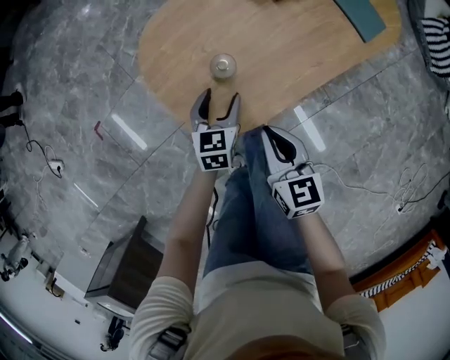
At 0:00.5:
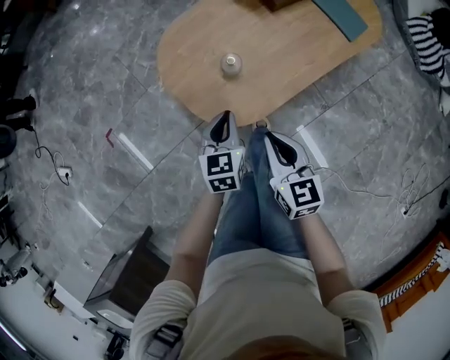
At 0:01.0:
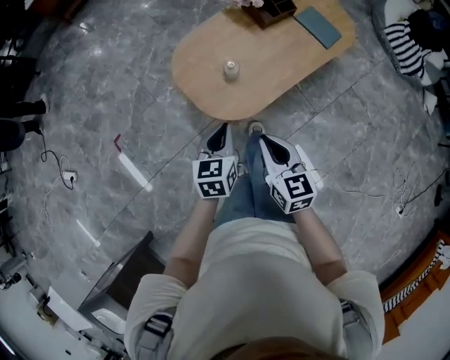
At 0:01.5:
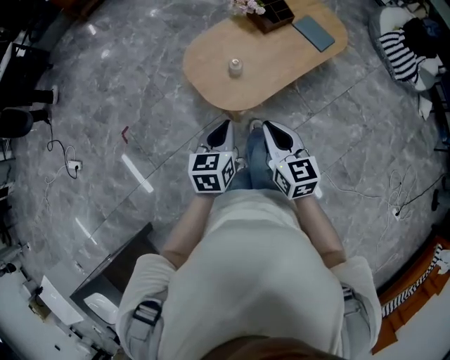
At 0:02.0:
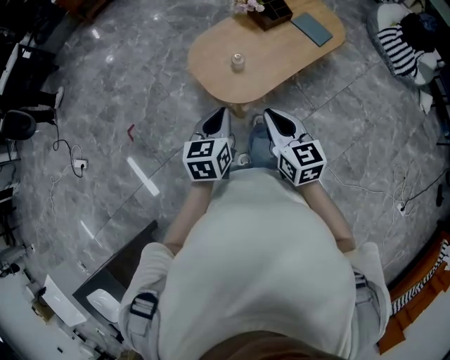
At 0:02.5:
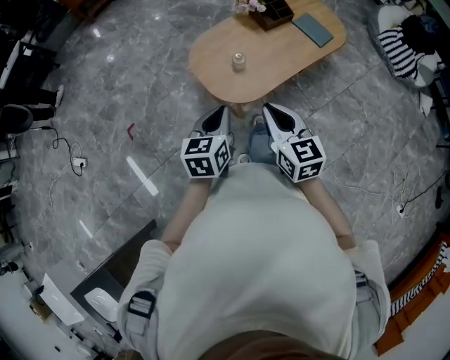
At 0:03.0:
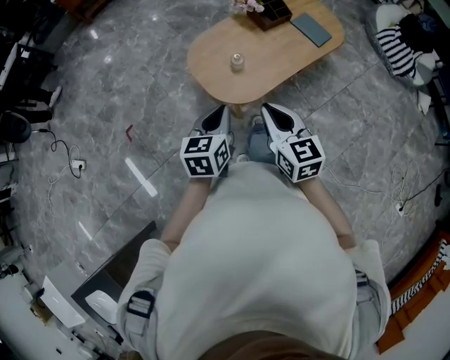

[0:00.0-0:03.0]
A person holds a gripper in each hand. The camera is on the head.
0:00.0 to 0:01.5: Both grippers move upward and backward, roughly 35 cm. The left gripper closes its fingers.
0:01.5 to 0:03.0: The grippers stay close to where they were, moving slightly.

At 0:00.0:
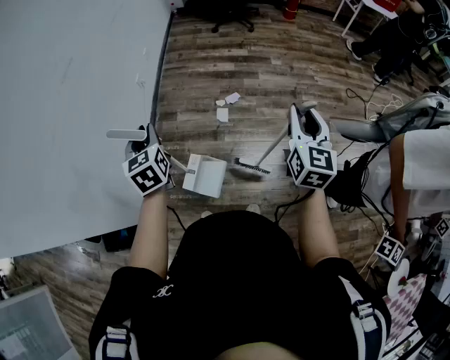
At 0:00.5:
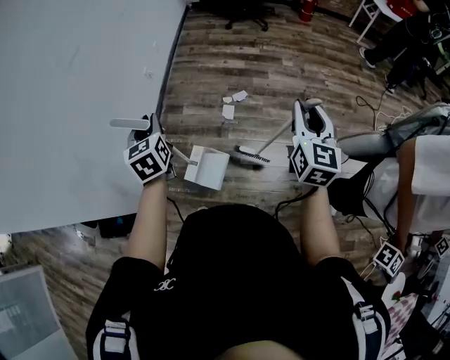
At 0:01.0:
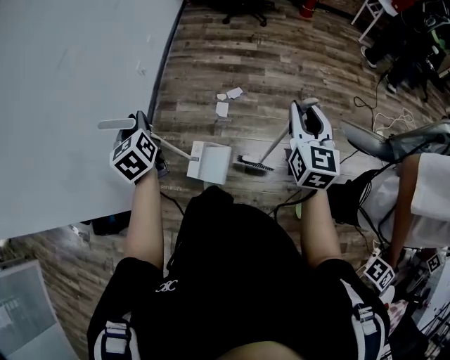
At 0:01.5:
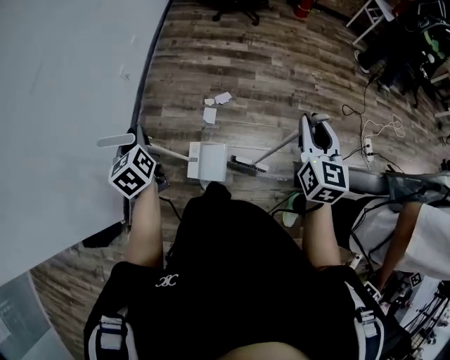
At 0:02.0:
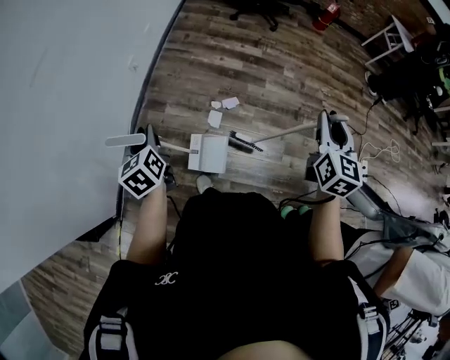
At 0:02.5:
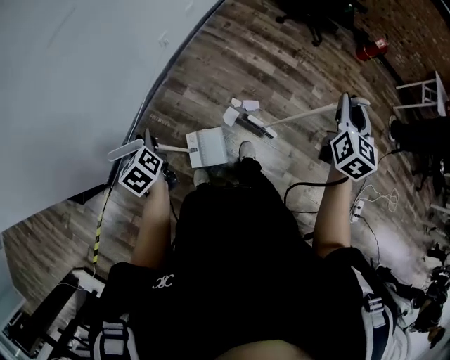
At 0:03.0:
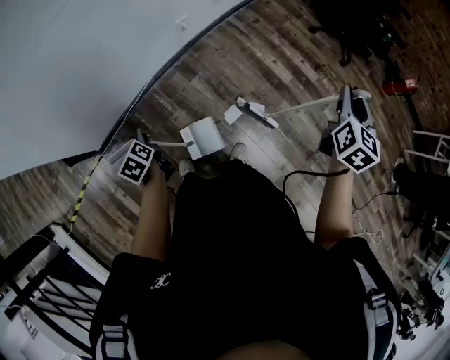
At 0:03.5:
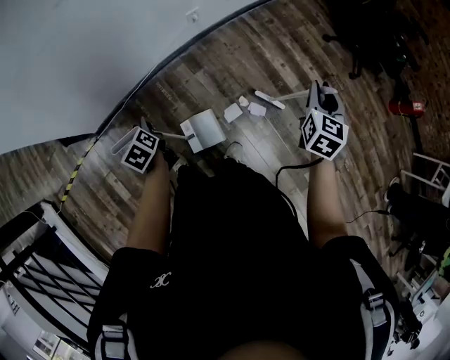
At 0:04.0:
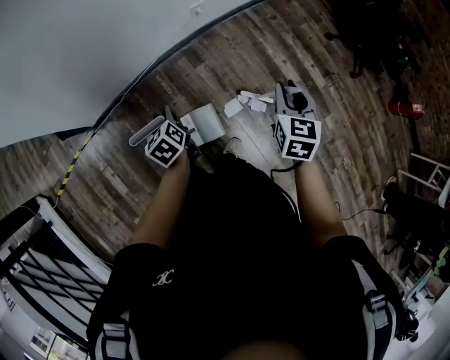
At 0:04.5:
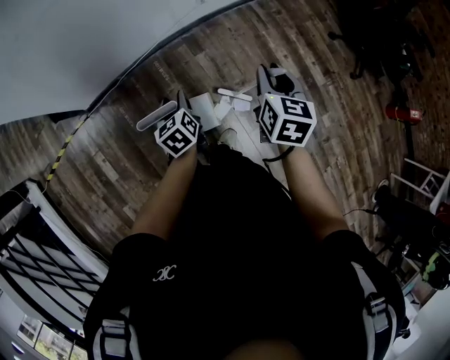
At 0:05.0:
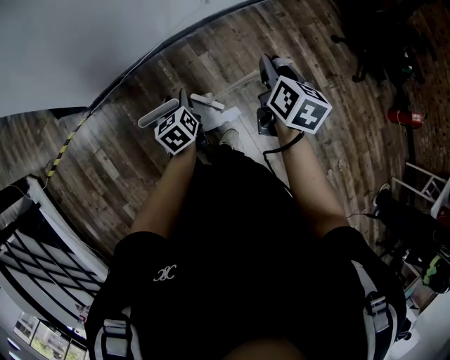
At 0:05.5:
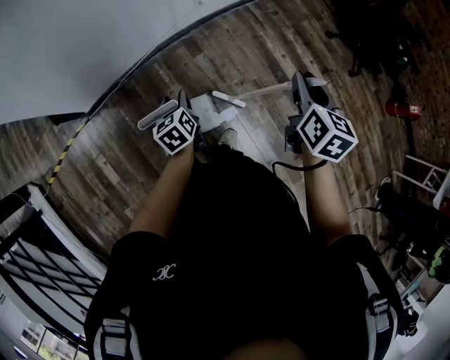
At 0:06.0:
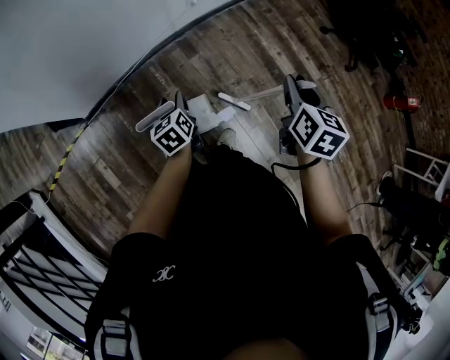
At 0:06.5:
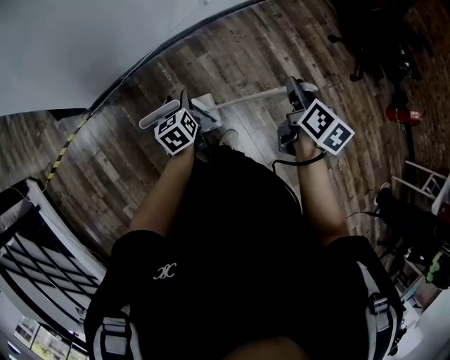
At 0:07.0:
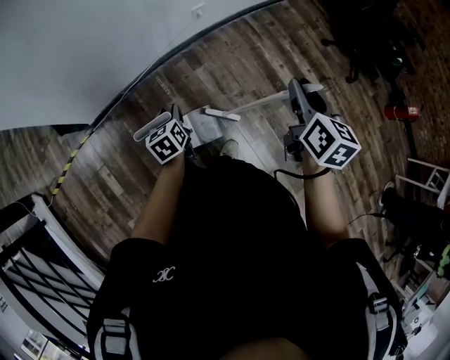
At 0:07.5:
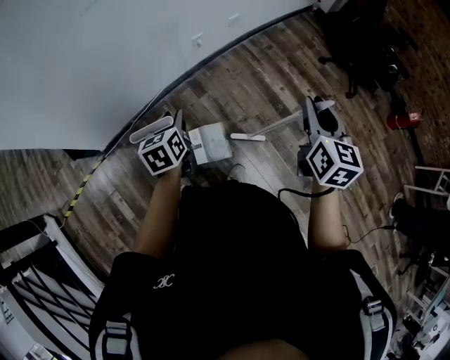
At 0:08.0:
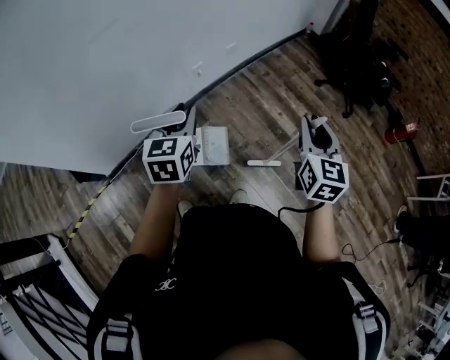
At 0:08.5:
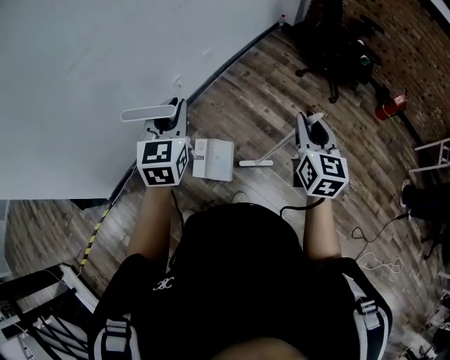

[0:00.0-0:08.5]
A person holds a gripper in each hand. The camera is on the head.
0:00.0 to 0:02.0: The right gripper travels forward and to the right by approximately 30 cm, while the left gripper travels forward and downward by approximately 20 cm, and turns by approximately 30 degrees.
0:02.0 to 0:04.0: The left gripper moves downward, some 15 cm, and swivels about 50 degrees. The right gripper ends up roughly 35 cm from where it was, and changes its angle by some 50 degrees.
0:04.0 to 0:06.5: The left gripper ends up roughly 5 cm from where it was. Meanwhile the right gripper moves some 5 cm to the left and comes back, and changes its angle by about 40 degrees.
0:06.5 to 0:08.5: The left gripper heads upward and to the right, covering roughly 35 cm, changes its angle by some 60 degrees, and closes. Meanwhile the right gripper shifts about 20 cm upward and to the right, and turns by roughly 40 degrees.

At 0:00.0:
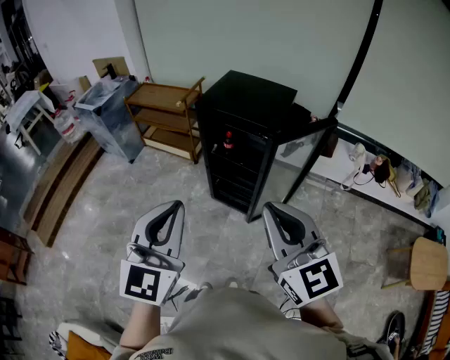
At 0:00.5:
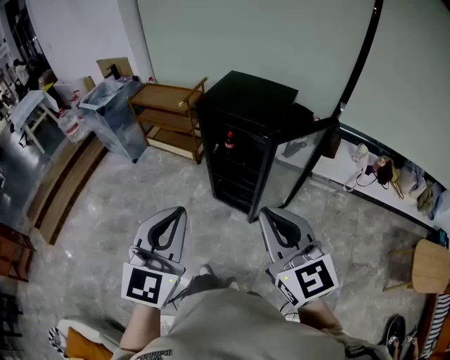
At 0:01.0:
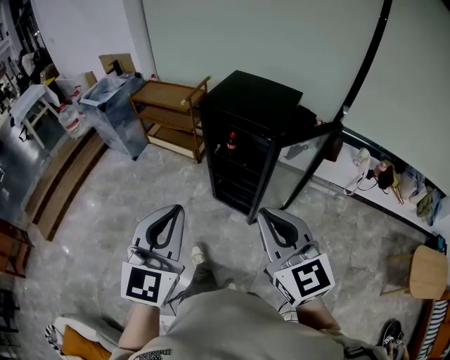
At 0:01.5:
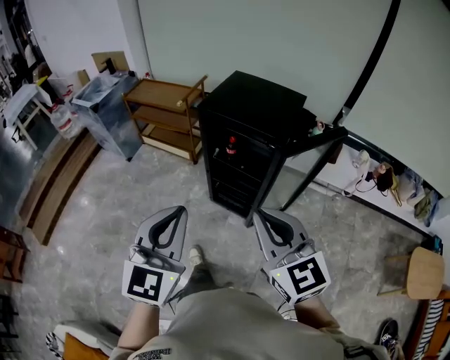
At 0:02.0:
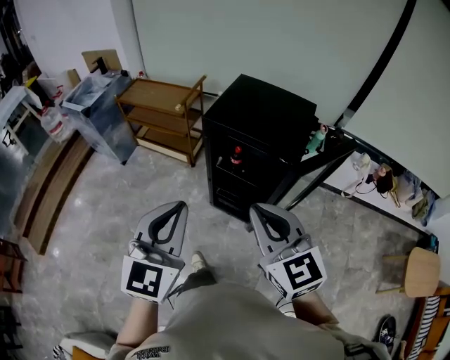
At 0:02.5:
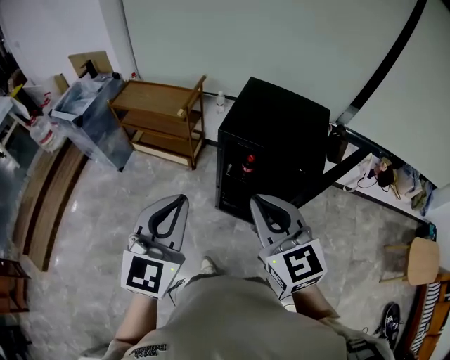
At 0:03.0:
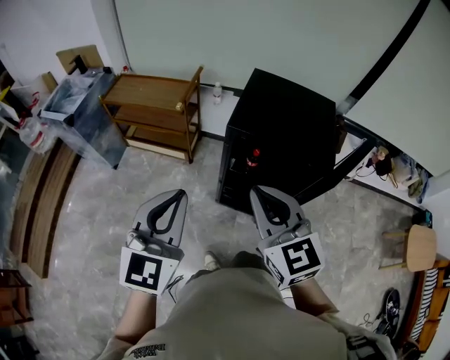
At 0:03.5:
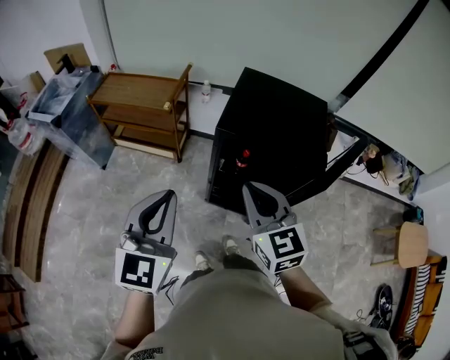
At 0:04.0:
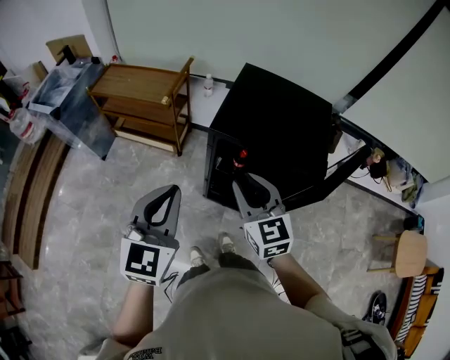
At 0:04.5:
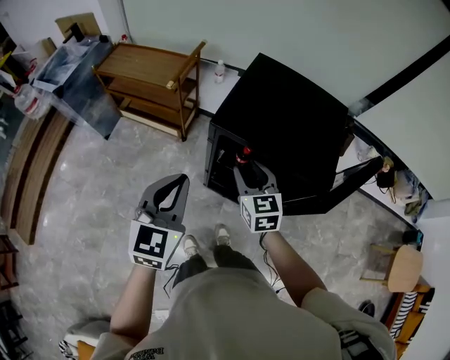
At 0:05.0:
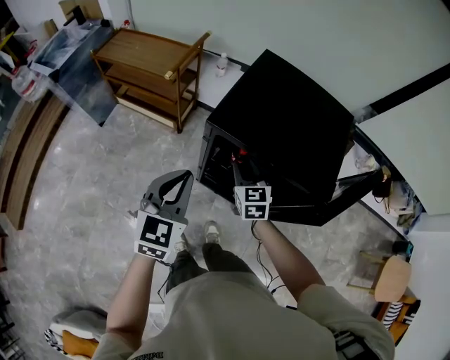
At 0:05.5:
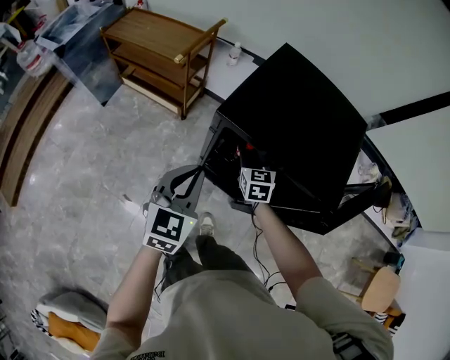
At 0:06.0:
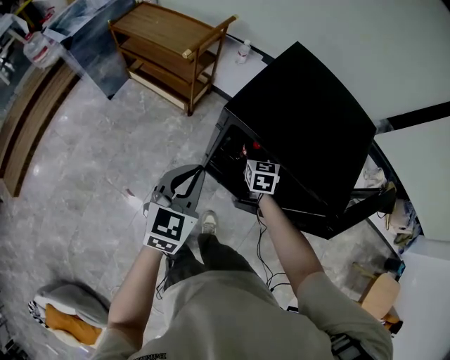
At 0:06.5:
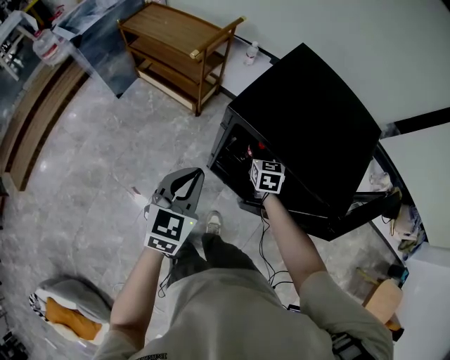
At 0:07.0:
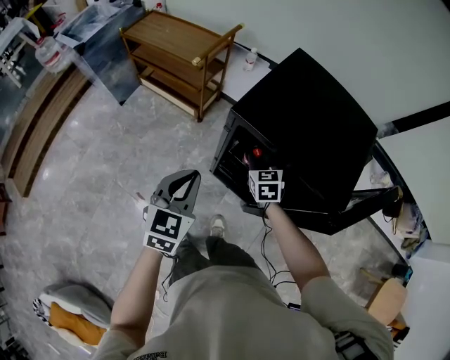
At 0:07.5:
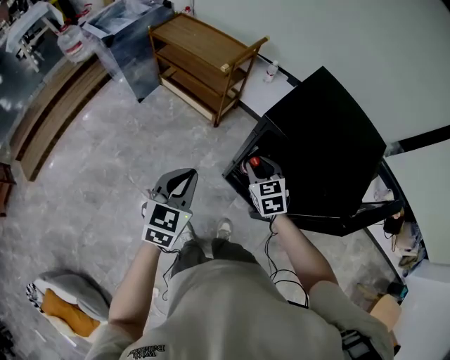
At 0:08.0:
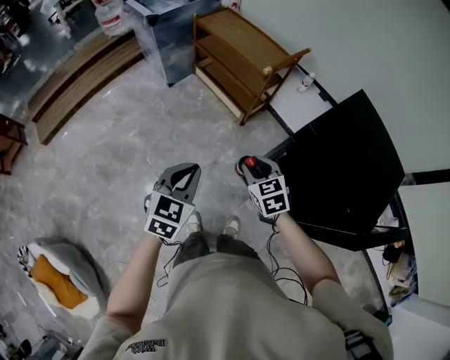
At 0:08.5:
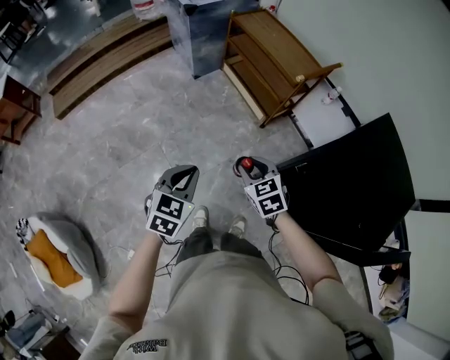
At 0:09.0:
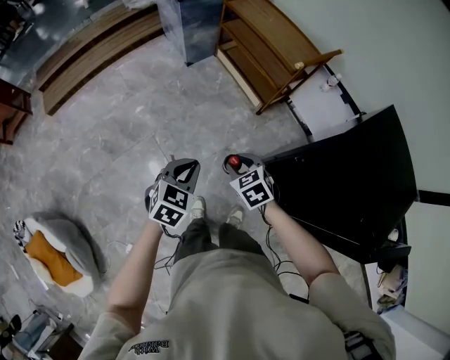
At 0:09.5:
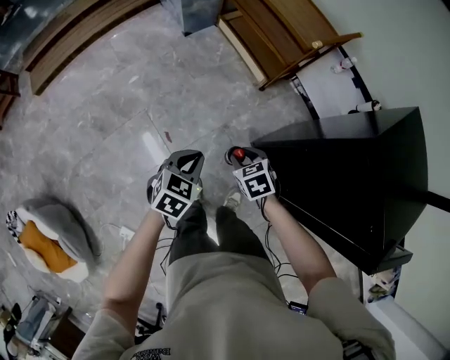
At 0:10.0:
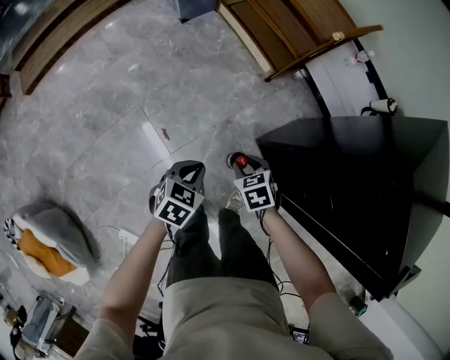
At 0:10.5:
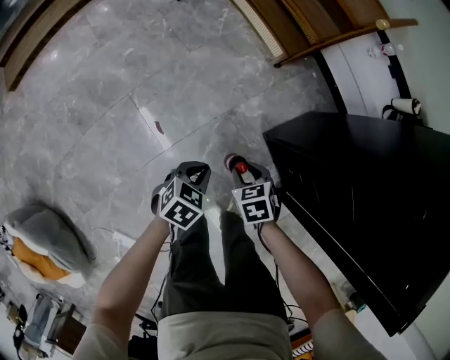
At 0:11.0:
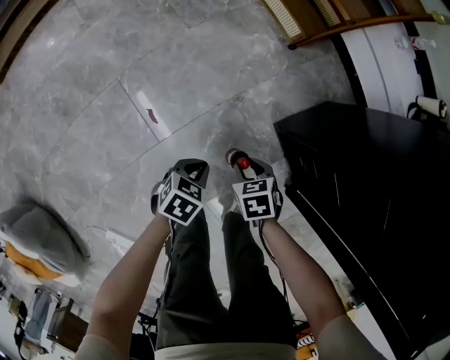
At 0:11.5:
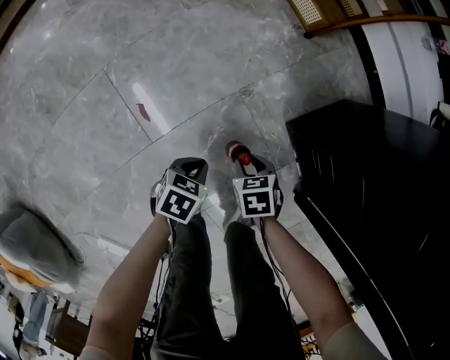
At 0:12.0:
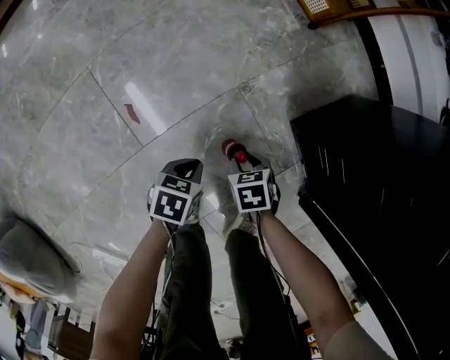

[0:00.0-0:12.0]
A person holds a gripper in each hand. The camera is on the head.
0:00.0 to 0:02.0: The left gripper moves forward, some 15 cm. The right gripper travels forward and to the left by roughly 20 cm.
0:02.0 to 0:04.0: The left gripper shifts about 20 cm forward and to the left. Meanwhile the right gripper shifts about 25 cm forward and downward, and opens.
0:04.0 to 0:06.0: The right gripper is displaced downward and forward by approximately 35 cm, and changes its angle by about 20 degrees. The left gripper is displaced downward and forward by some 20 cm.
0:06.0 to 0:08.0: The right gripper shifts by some 30 cm, and turns by some 40 degrees, while the left gripper shifts by about 20 cm.
0:08.0 to 0:10.0: Both grippers move downward, some 30 cm. The left gripper rotates approximately 30 degrees. The right gripper swivels about 30 degrees.
0:10.0 to 0:12.0: Both grippers travel together downward, approximately 50 cm. The left gripper changes its angle by roughly 30 degrees.

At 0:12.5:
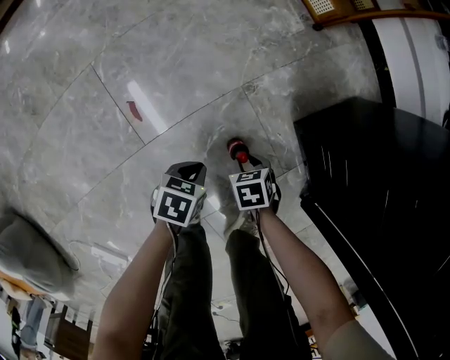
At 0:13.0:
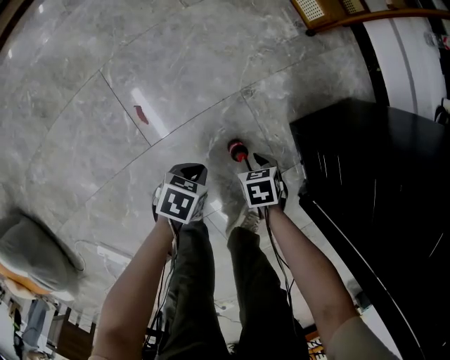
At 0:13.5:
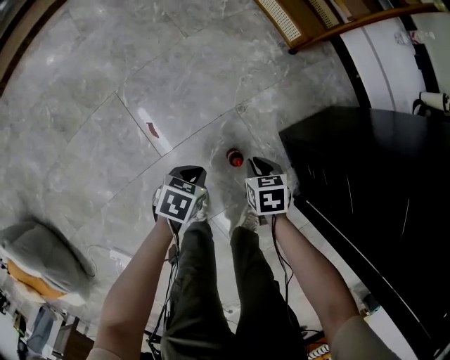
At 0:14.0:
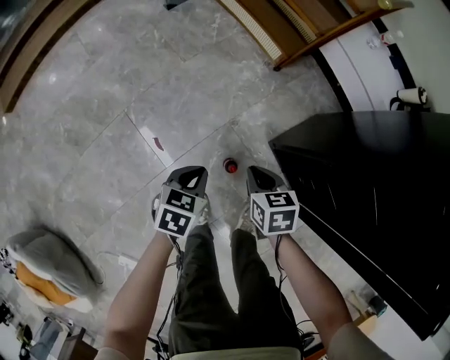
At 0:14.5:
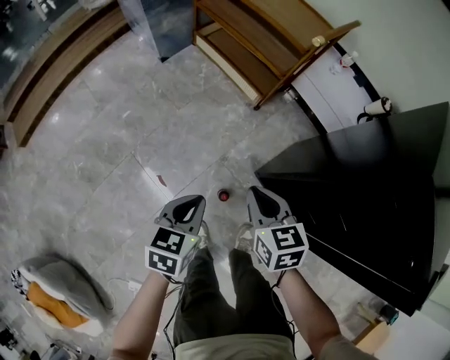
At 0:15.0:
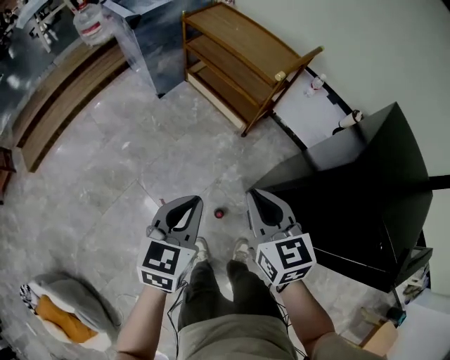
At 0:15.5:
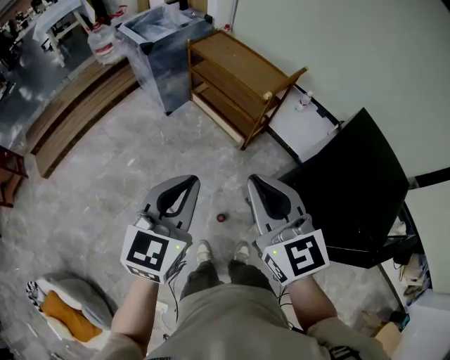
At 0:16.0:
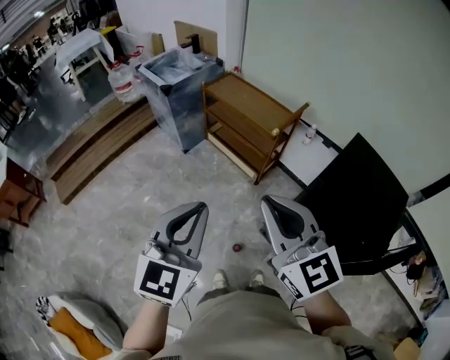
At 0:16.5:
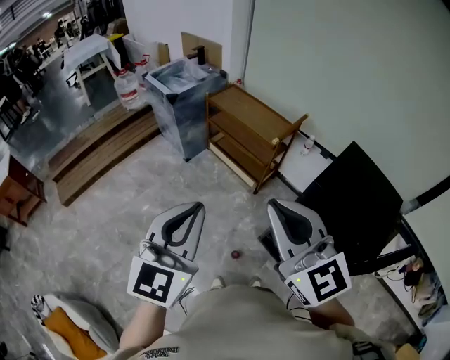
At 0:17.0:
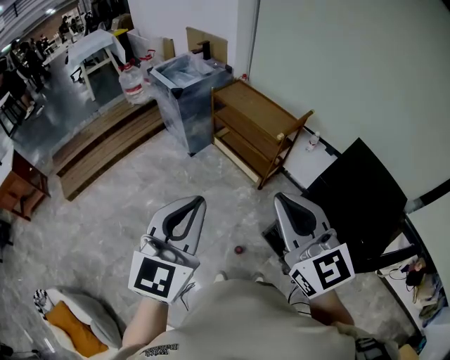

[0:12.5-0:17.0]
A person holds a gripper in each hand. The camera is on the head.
0:12.5 to 0:14.5: Both grippers travel together upward, approximately 60 cm. The left gripper changes its angle by approximately 30 degrees. The right gripper tilts its fingers roughly 40 degrees upward, and closes.
0:14.5 to 0:17.0: The two grippers go approximately 60 cm upward. The left gripper tilts its fingers about 40 degrees upward; the right gripper points its fingers approximately 40 degrees further upward.
